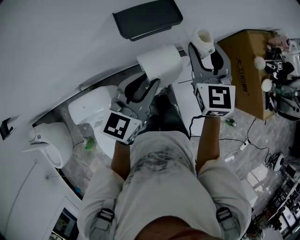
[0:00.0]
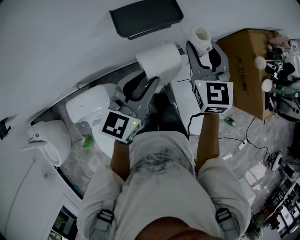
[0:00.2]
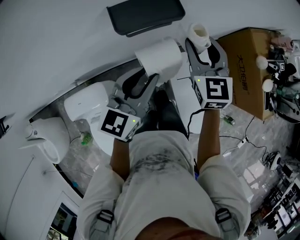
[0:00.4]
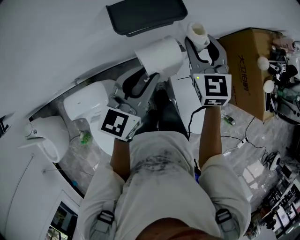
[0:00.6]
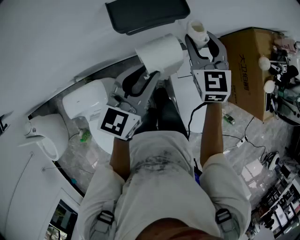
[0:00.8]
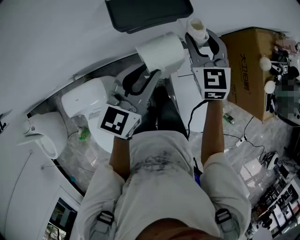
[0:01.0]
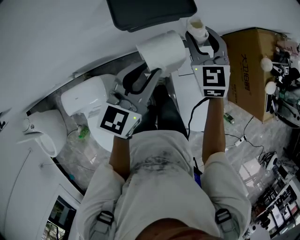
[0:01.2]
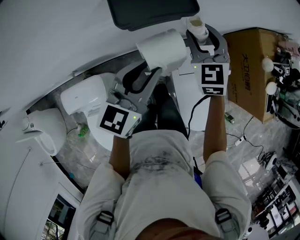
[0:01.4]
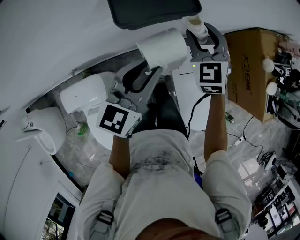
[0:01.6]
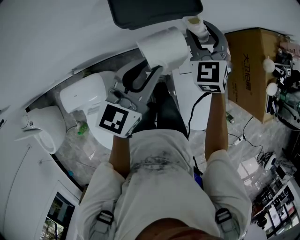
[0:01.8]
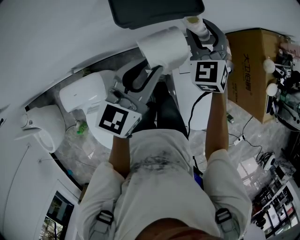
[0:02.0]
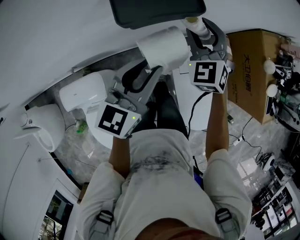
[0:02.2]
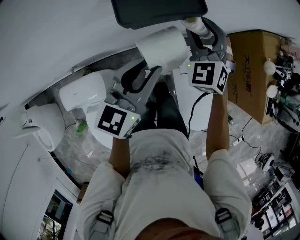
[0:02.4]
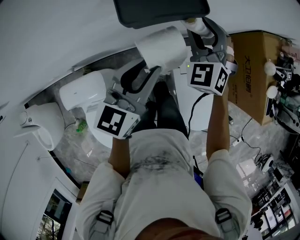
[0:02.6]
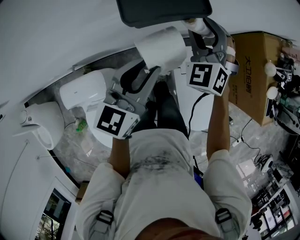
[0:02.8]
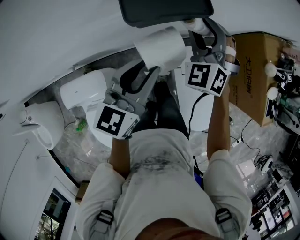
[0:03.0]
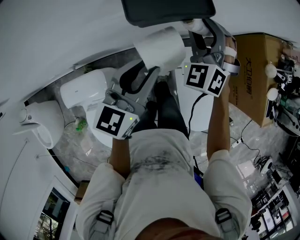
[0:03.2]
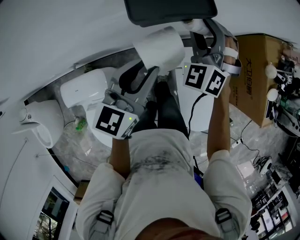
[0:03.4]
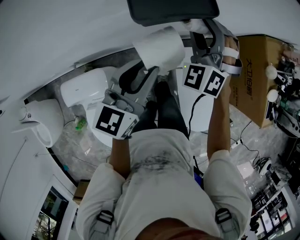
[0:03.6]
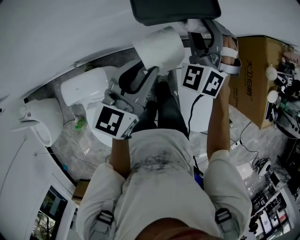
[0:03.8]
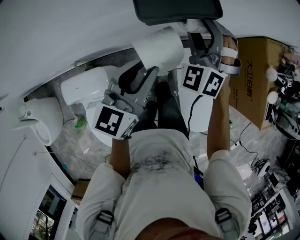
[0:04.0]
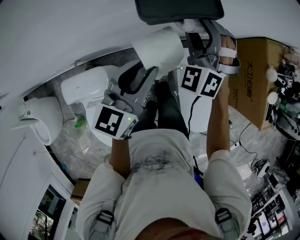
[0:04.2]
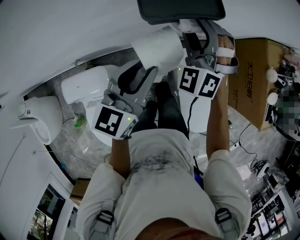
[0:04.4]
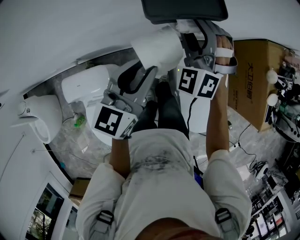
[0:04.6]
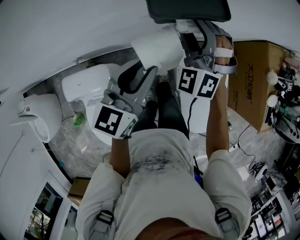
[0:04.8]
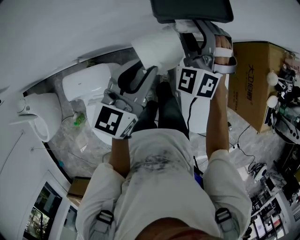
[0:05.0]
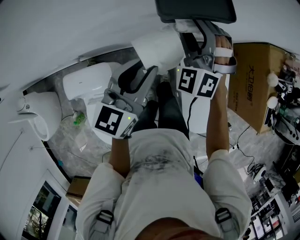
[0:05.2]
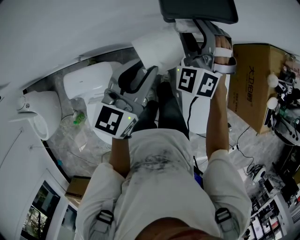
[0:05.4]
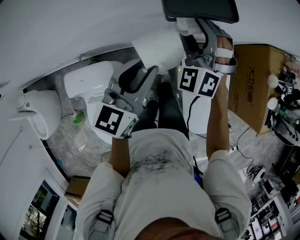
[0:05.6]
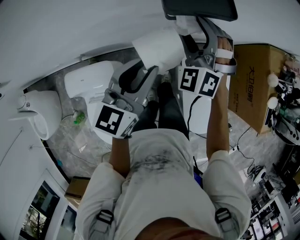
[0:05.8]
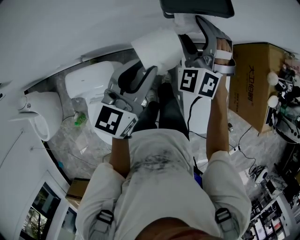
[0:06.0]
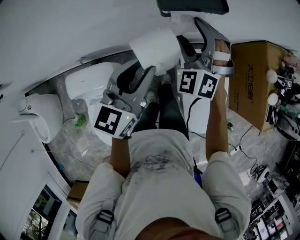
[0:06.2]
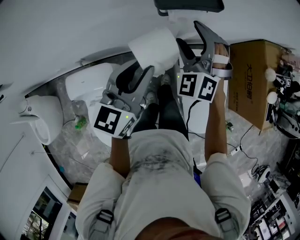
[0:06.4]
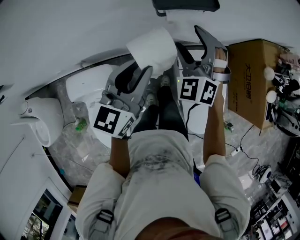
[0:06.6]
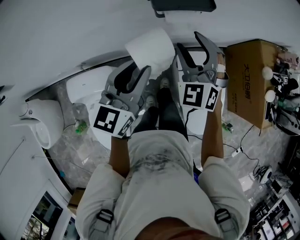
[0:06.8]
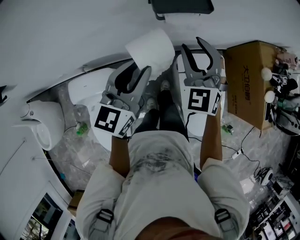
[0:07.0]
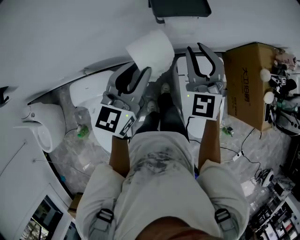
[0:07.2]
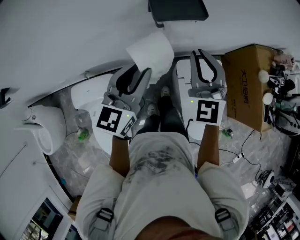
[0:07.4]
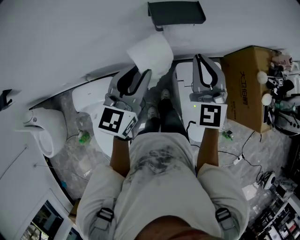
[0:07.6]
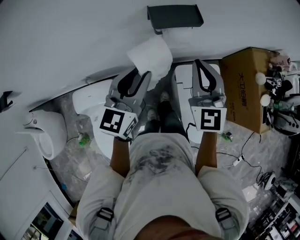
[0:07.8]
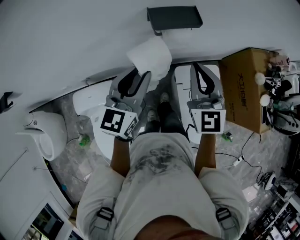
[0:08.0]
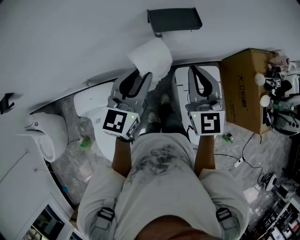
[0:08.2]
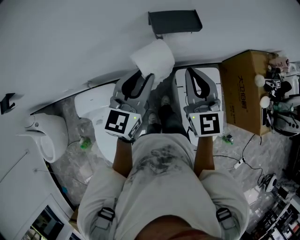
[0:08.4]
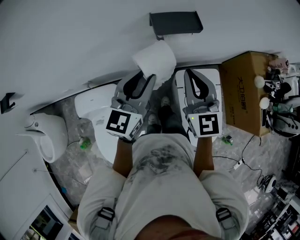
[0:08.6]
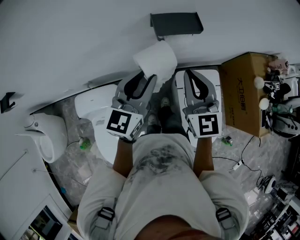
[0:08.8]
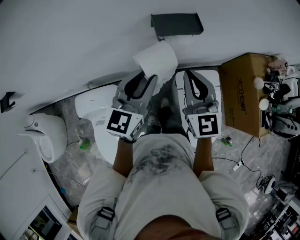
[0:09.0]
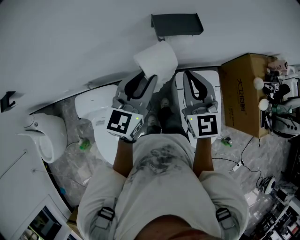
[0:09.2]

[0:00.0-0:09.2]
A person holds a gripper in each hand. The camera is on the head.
0:00.0 to 0:01.6: The right gripper moves downward and forward, about 15 cm, and swivels roughly 20 degrees, while the left gripper changes place by approximately 5 cm.
0:01.6 to 0:03.0: The right gripper changes its angle by some 30 degrees.
0:03.0 to 0:04.6: The right gripper heads to the left, covering roughly 10 cm; the left gripper ends up about 5 cm from where it was.
0:04.6 to 0:06.2: The right gripper opens up.
0:06.2 to 0:07.6: The left gripper travels upward by approximately 5 cm. Meanwhile the right gripper heads upward, backward and to the right, covering some 15 cm, swivels roughly 40 degrees, and closes up.
0:07.6 to 0:09.2: The grippers move only a little.

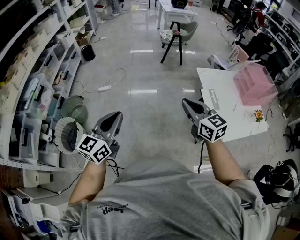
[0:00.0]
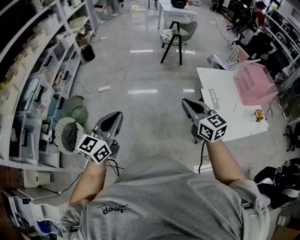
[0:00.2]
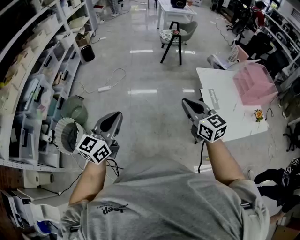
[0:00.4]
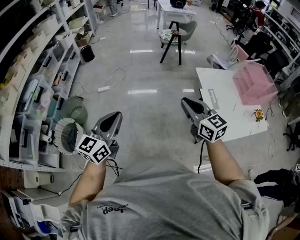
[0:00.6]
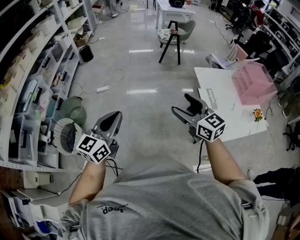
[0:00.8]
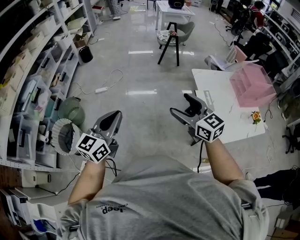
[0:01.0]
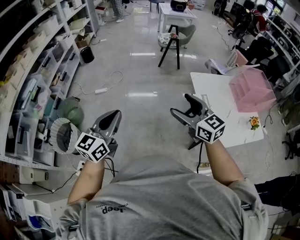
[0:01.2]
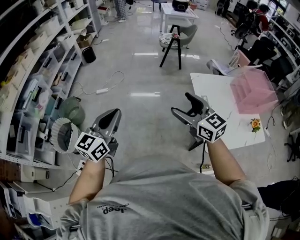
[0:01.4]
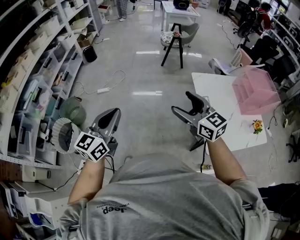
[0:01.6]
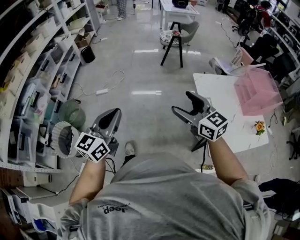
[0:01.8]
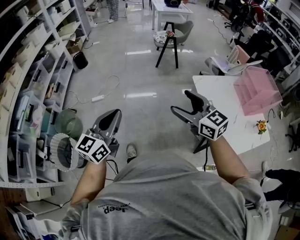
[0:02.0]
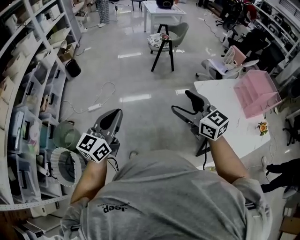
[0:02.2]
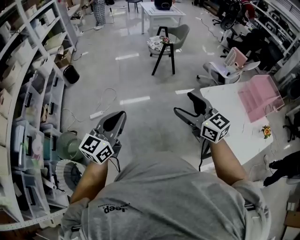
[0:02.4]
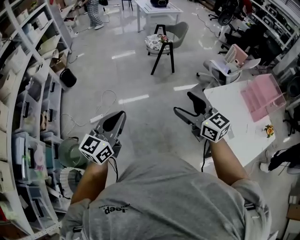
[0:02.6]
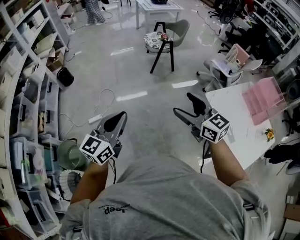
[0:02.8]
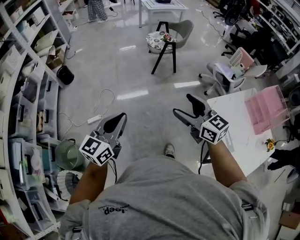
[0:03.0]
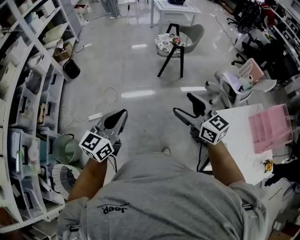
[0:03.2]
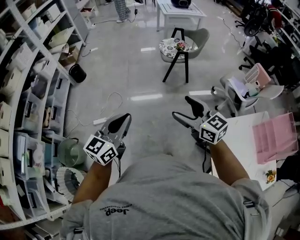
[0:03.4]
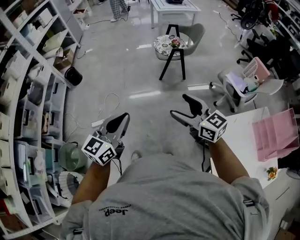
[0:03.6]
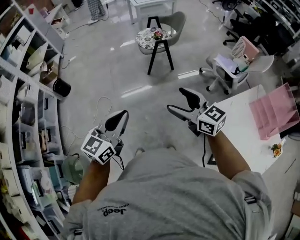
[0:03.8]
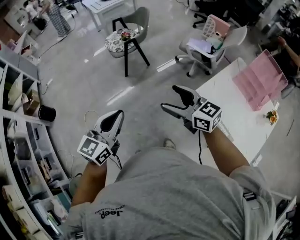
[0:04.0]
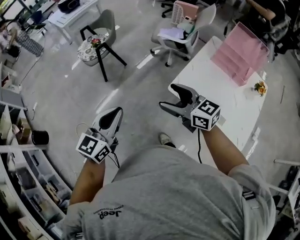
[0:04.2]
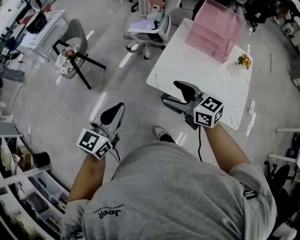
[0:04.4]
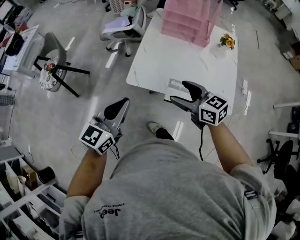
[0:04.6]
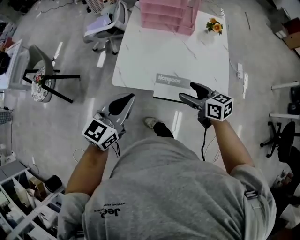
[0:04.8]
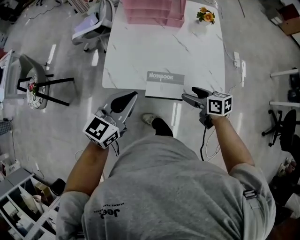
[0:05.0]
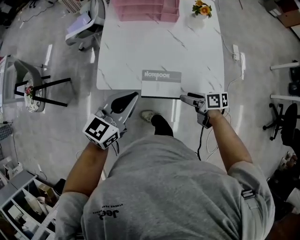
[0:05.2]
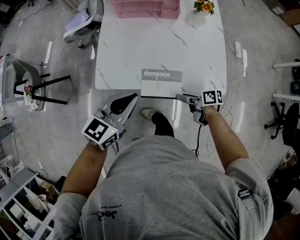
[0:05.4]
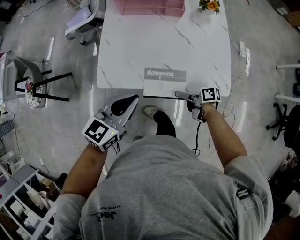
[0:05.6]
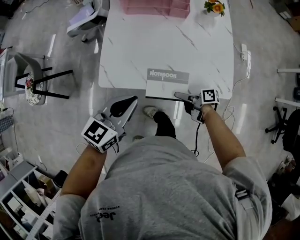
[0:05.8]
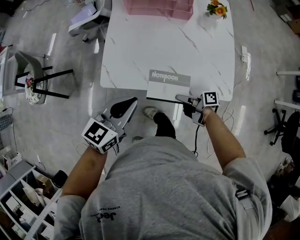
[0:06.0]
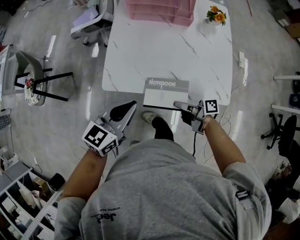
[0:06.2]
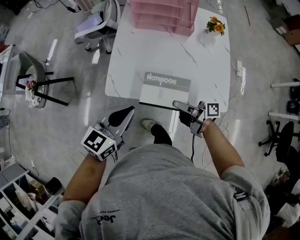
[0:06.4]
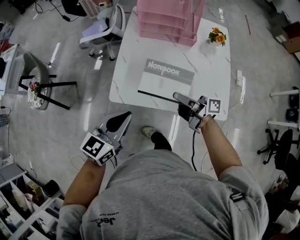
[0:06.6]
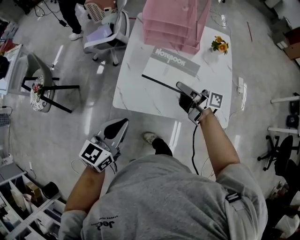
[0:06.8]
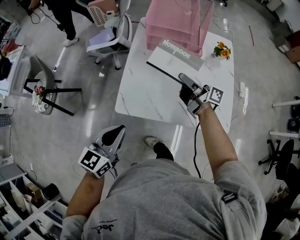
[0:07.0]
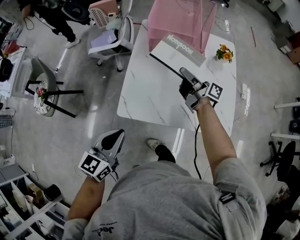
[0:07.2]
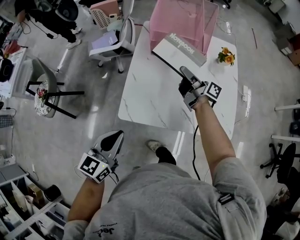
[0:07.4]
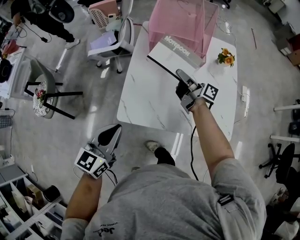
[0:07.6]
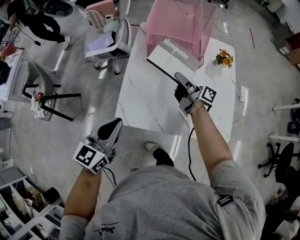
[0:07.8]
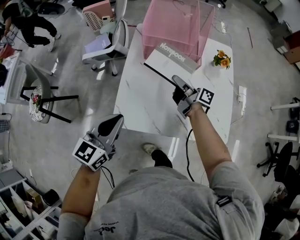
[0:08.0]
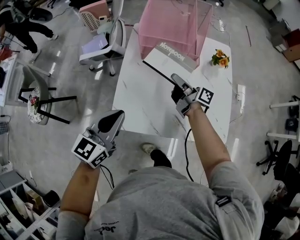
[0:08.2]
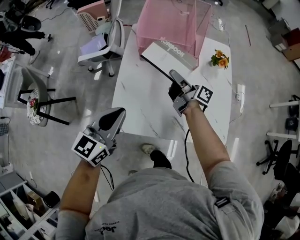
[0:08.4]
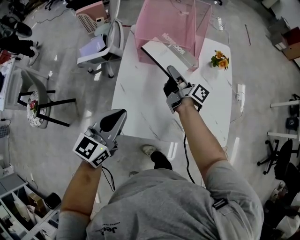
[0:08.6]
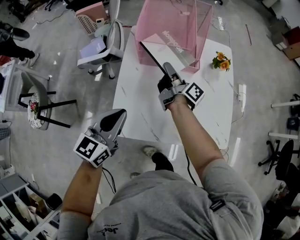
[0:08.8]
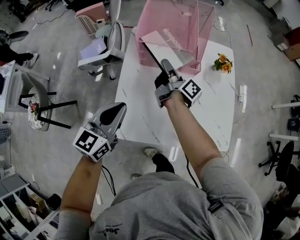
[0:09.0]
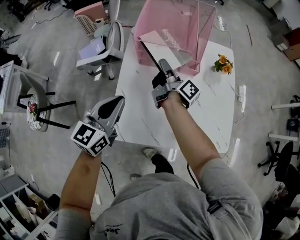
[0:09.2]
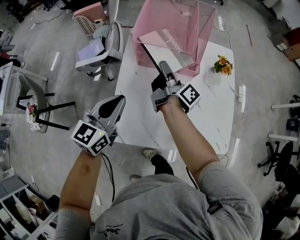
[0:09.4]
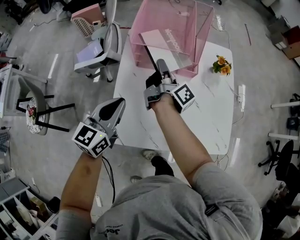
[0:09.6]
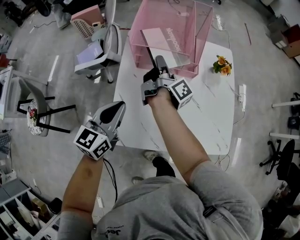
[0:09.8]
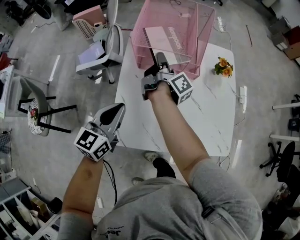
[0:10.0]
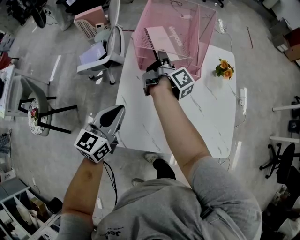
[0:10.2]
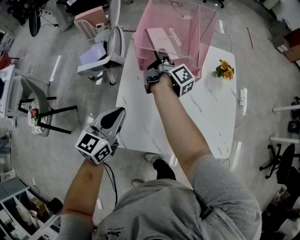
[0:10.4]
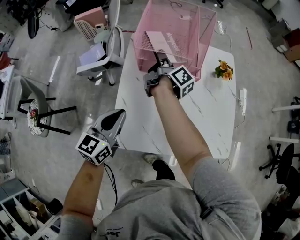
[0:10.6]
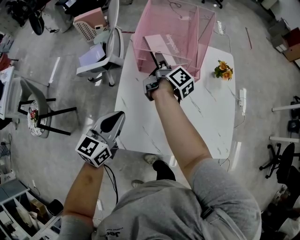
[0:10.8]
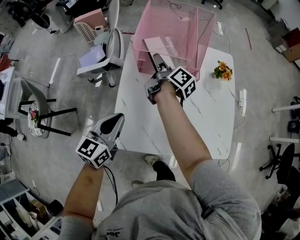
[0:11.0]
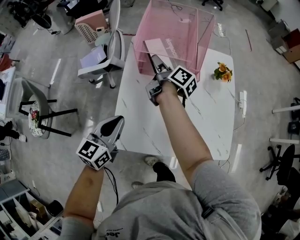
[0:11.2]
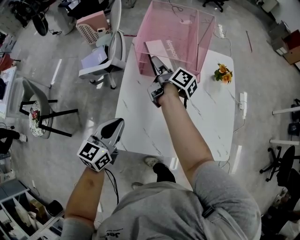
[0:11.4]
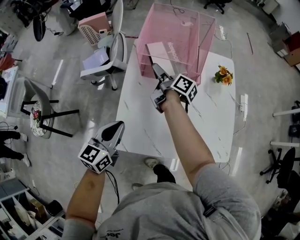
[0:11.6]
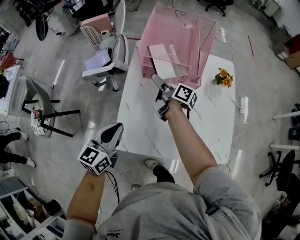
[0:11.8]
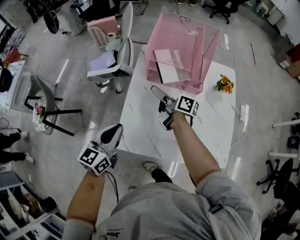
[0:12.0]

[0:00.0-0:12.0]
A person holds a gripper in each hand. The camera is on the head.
0:00.0 to 0:01.6: Both grippers move to the right, approximately 10 cm. The right gripper opens up.
0:01.6 to 0:03.0: Both grippers are carried forward, some 40 cm.
0:03.0 to 0:04.4: The right gripper changes place by roughly 30 cm, and rotates approximately 40 degrees, while the left gripper shifts by roughly 40 cm, and turns by approximately 50 degrees.
0:04.4 to 0:06.0: The left gripper changes place by some 30 cm, and swivels about 30 degrees. Meanwhile the right gripper travels downward by roughly 35 cm, rolls clockwise, seen from behind, by some 80 degrees, and closes.
0:06.0 to 0:07.6: The left gripper shifts approximately 15 cm to the left, forward and upward, while the right gripper travels forward and upward by about 35 cm, and swivels approximately 40 degrees.
0:07.6 to 0:09.0: The right gripper travels forward by about 10 cm, and rotates about 20 degrees, while the left gripper is displaced forward by about 15 cm.
0:09.0 to 0:10.4: The right gripper is displaced forward by roughly 10 cm.
0:10.4 to 0:12.0: The left gripper is displaced backward by approximately 5 cm; the right gripper goes roughly 10 cm backward, rotates roughly 40 degrees, and opens up.

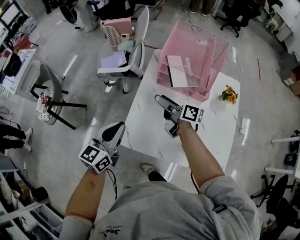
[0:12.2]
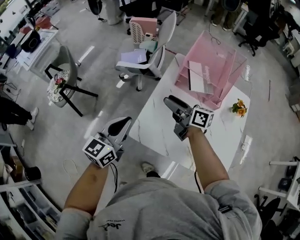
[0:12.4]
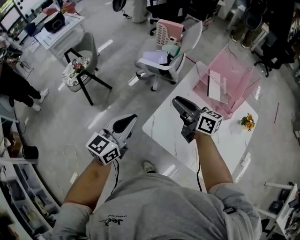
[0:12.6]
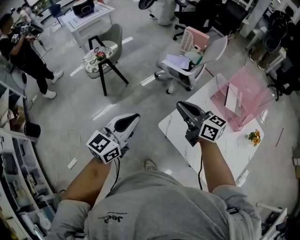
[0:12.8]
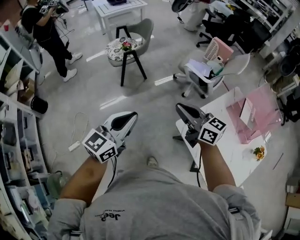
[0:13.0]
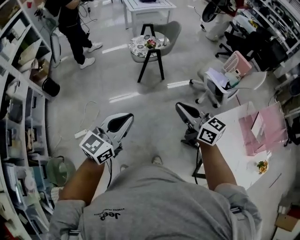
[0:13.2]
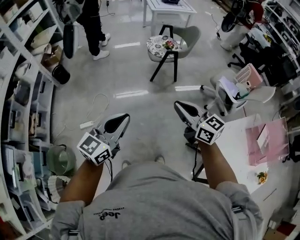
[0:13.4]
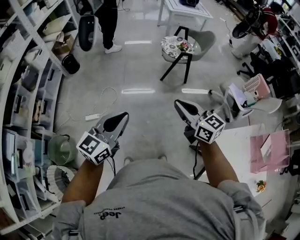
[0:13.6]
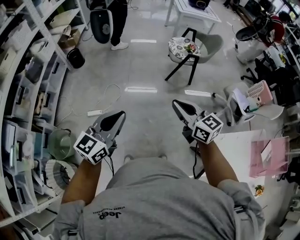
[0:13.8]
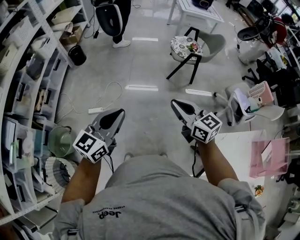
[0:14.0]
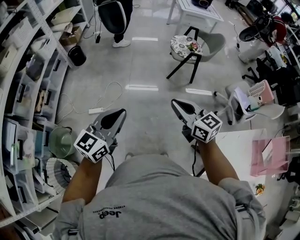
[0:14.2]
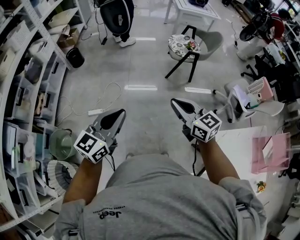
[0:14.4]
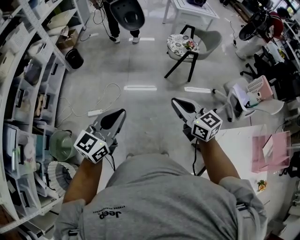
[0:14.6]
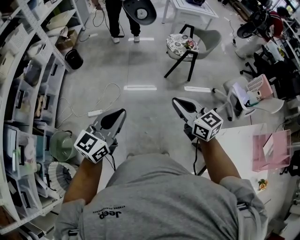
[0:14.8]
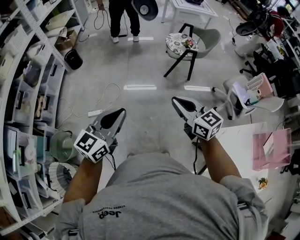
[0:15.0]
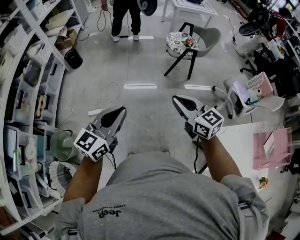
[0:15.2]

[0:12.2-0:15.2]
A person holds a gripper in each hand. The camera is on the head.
0:12.2 to 0:13.8: The two grippers travel together, approximately 70 cm. The left gripper changes its angle by approximately 60 degrees. The right gripper swivels approximately 80 degrees, and closes up.
0:13.8 to 0:15.2: There are only small adjustments of the grippers.
